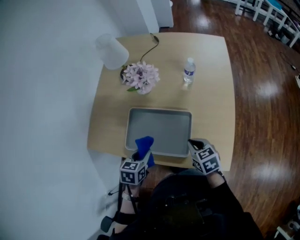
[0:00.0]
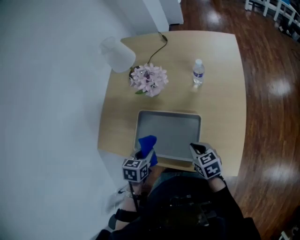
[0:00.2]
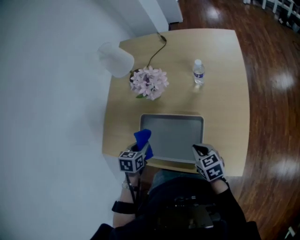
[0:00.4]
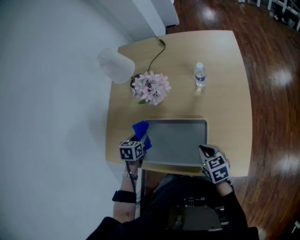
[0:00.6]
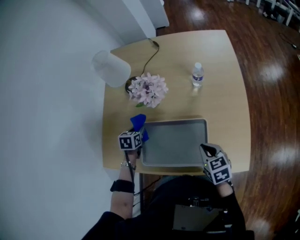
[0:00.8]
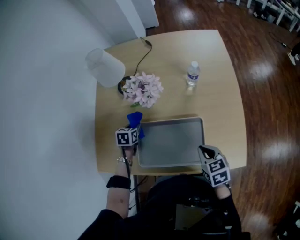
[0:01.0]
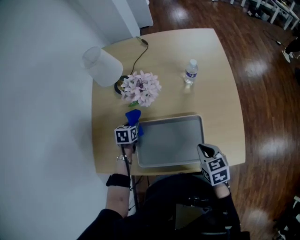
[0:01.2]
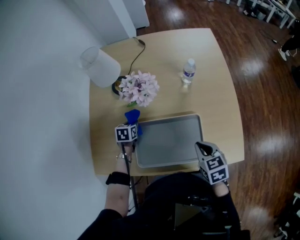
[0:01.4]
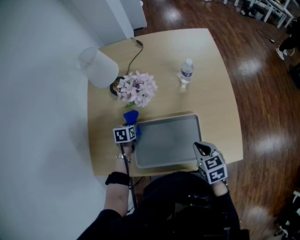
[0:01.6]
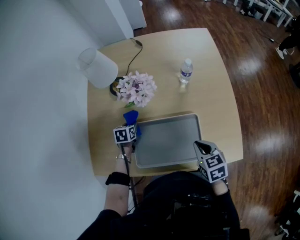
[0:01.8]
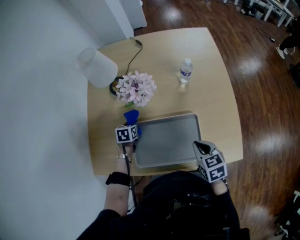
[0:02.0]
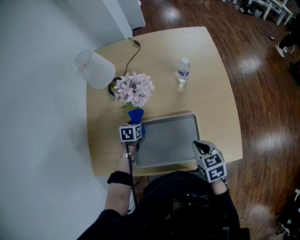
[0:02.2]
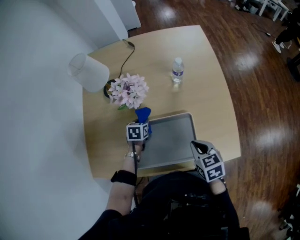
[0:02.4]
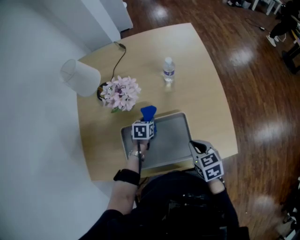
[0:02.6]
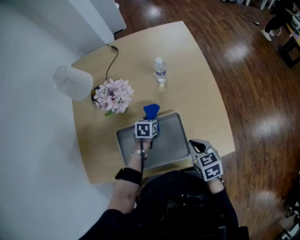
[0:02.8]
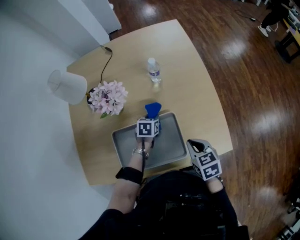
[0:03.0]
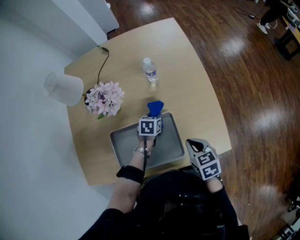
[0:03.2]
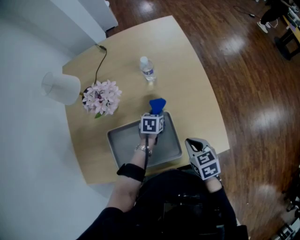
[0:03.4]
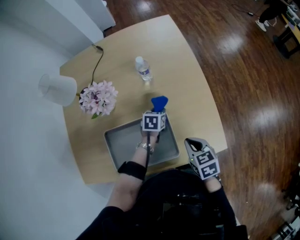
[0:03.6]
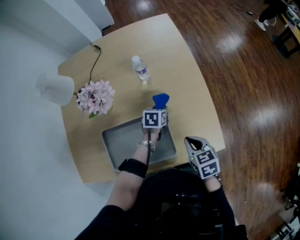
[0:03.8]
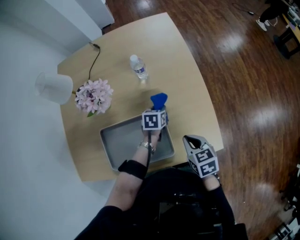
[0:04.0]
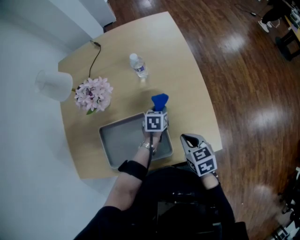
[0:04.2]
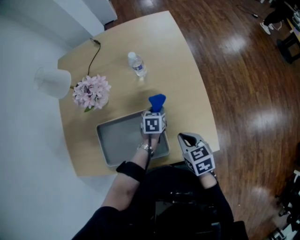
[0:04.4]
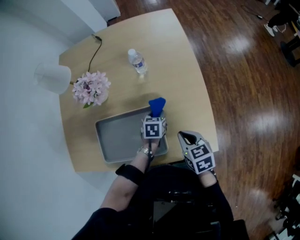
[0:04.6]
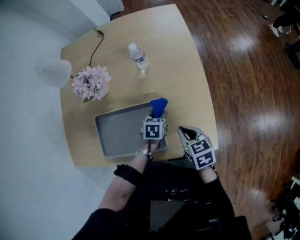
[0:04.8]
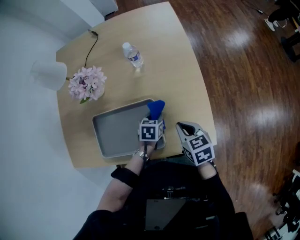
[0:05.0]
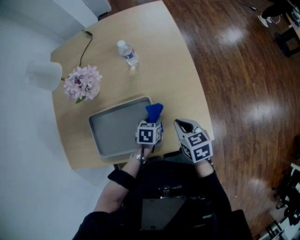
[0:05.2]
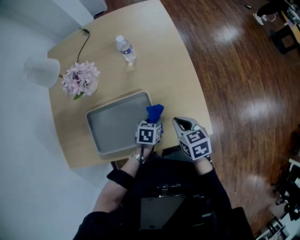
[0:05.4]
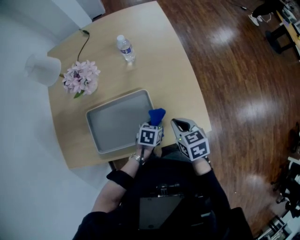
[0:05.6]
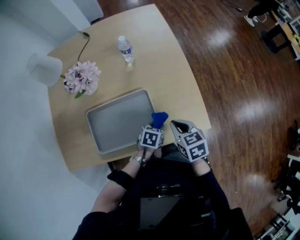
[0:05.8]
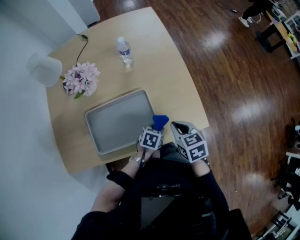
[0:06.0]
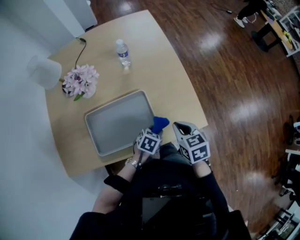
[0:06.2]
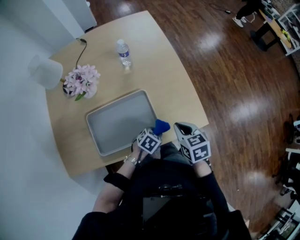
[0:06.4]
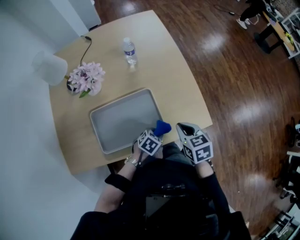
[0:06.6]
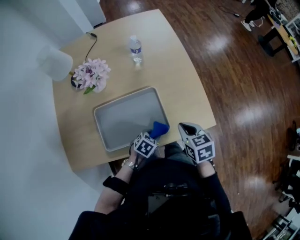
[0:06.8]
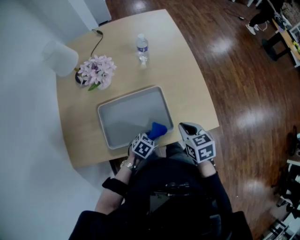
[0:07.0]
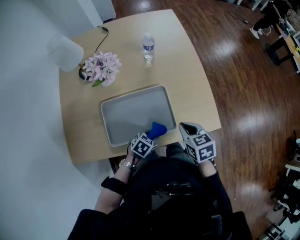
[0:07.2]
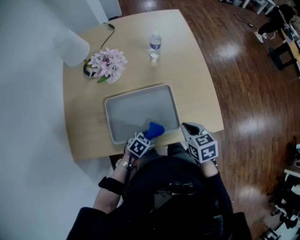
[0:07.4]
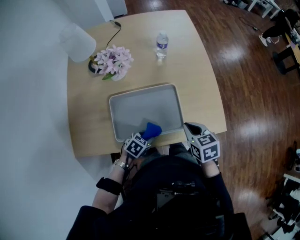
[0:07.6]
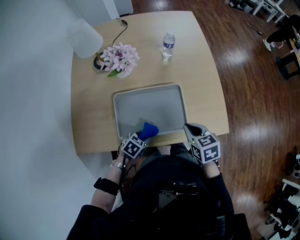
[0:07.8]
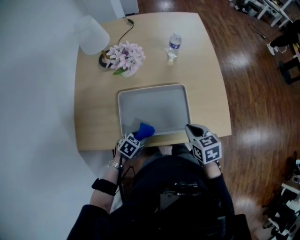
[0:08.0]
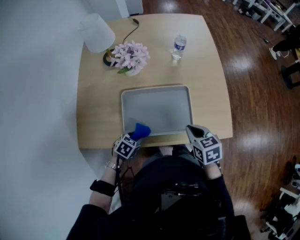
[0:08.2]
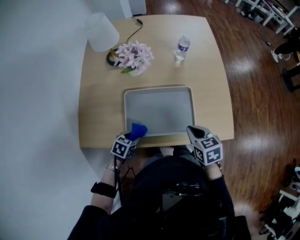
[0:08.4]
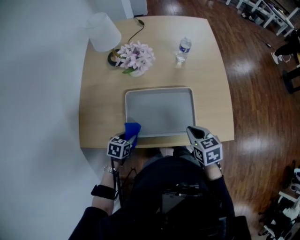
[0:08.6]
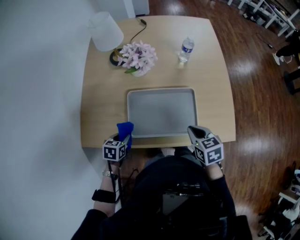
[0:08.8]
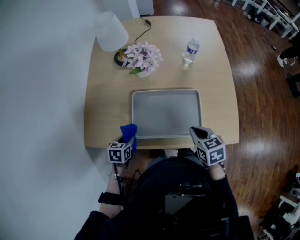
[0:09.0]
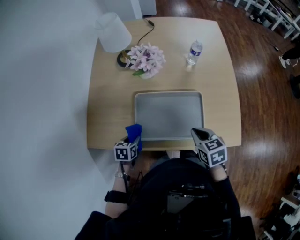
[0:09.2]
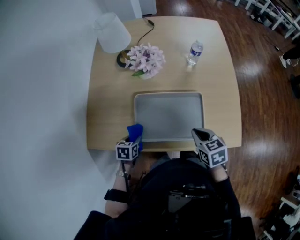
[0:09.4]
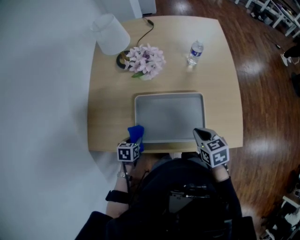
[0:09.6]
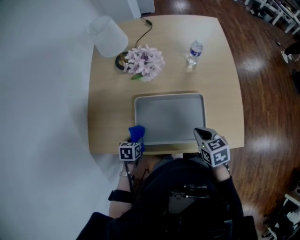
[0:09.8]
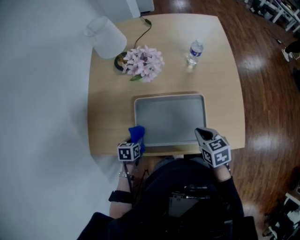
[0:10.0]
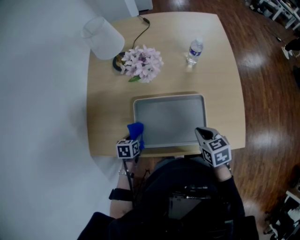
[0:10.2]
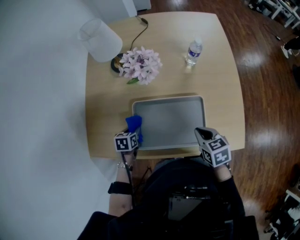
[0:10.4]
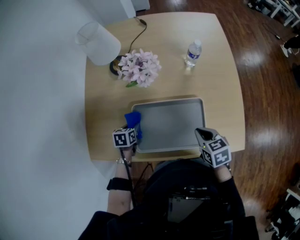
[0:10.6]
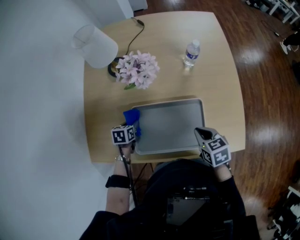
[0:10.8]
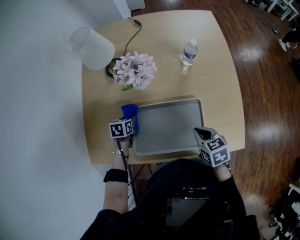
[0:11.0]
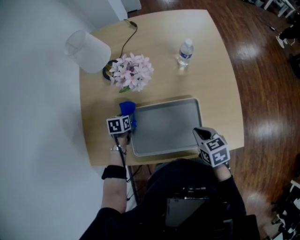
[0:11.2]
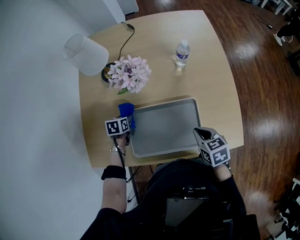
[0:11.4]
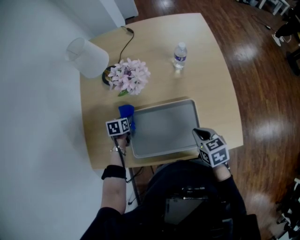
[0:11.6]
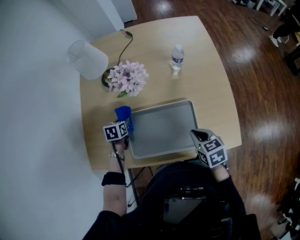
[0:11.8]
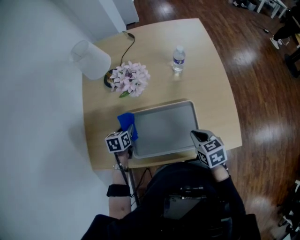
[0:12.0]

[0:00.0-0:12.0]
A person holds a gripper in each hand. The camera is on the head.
0:00.0 to 0:01.6: The right gripper changes place by about 5 cm; the left gripper heads forward and downward, covering roughly 30 cm.
0:01.6 to 0:03.0: The left gripper shifts approximately 25 cm to the right. Meanwhile the right gripper moves to the right, roughly 10 cm.
0:03.0 to 0:04.4: The right gripper travels to the right by roughly 5 cm. The left gripper moves to the right, some 10 cm.
0:04.4 to 0:06.0: The right gripper shifts by approximately 5 cm. Meanwhile the left gripper shifts by approximately 25 cm, and changes its angle by approximately 30 degrees.
0:06.0 to 0:07.6: The left gripper moves to the left and backward, approximately 20 cm. The right gripper travels to the left by about 5 cm.
0:07.6 to 0:09.0: The left gripper shifts by roughly 20 cm, and rotates roughly 40 degrees. Meanwhile the right gripper ends up roughly 5 cm from where it was.
0:09.0 to 0:10.4: The left gripper is displaced forward by roughly 10 cm, while the right gripper shifts some 5 cm forward.
0:10.4 to 0:12.0: The left gripper is displaced forward and upward by roughly 10 cm.

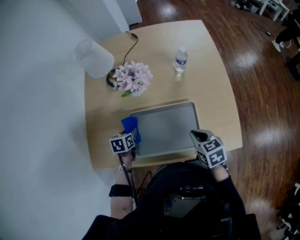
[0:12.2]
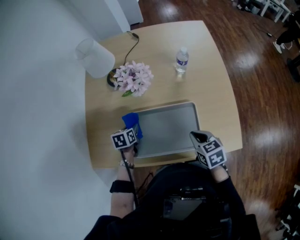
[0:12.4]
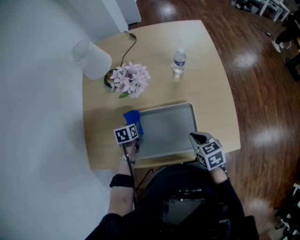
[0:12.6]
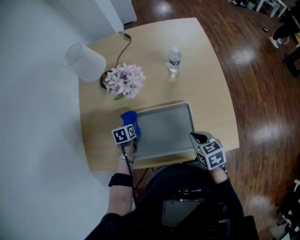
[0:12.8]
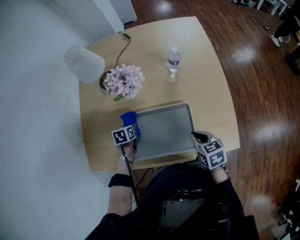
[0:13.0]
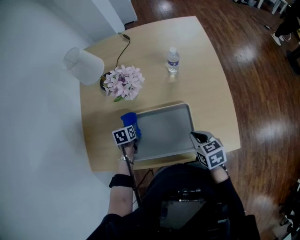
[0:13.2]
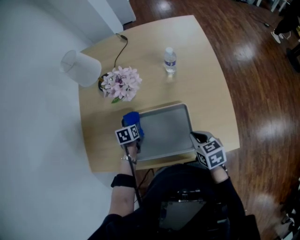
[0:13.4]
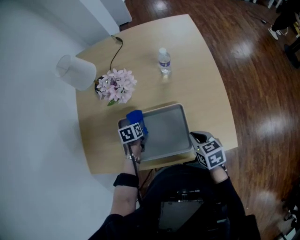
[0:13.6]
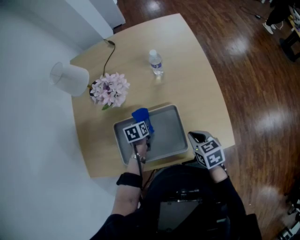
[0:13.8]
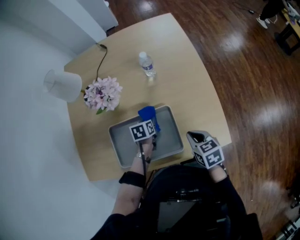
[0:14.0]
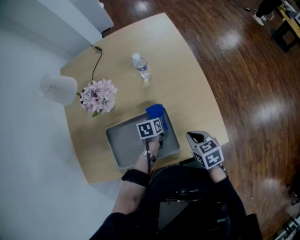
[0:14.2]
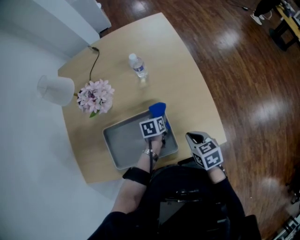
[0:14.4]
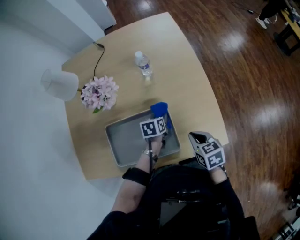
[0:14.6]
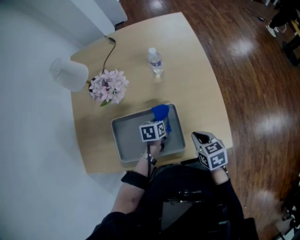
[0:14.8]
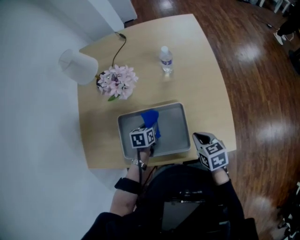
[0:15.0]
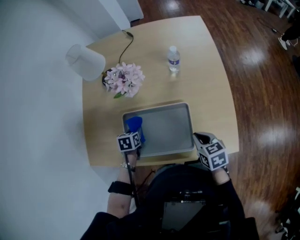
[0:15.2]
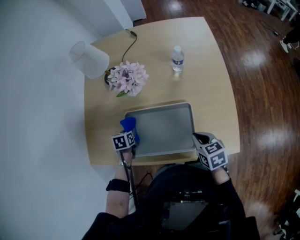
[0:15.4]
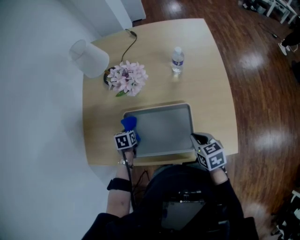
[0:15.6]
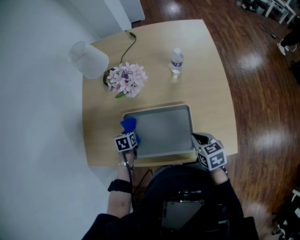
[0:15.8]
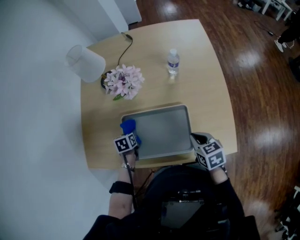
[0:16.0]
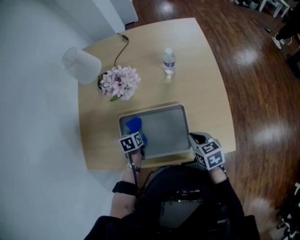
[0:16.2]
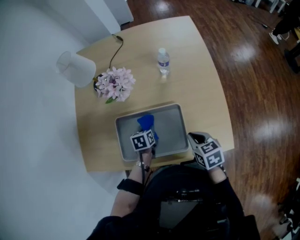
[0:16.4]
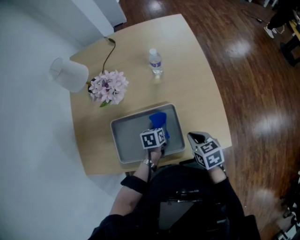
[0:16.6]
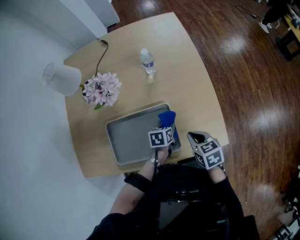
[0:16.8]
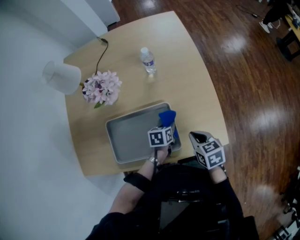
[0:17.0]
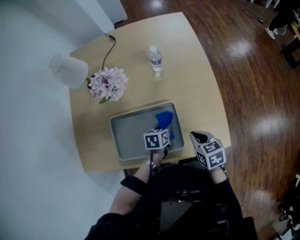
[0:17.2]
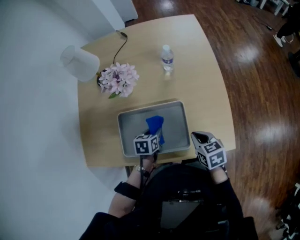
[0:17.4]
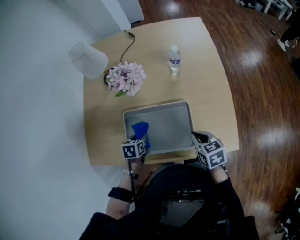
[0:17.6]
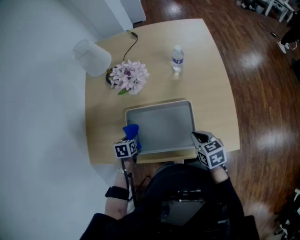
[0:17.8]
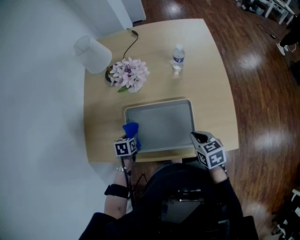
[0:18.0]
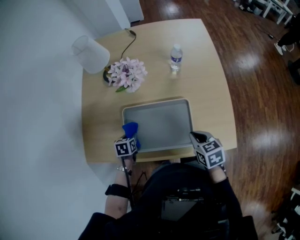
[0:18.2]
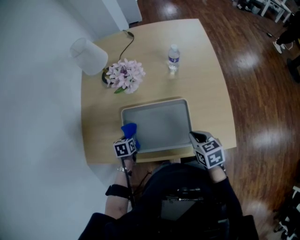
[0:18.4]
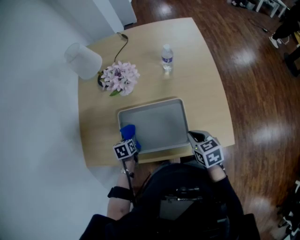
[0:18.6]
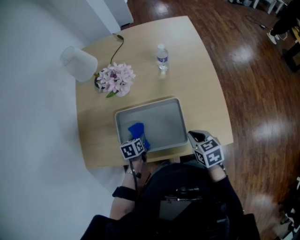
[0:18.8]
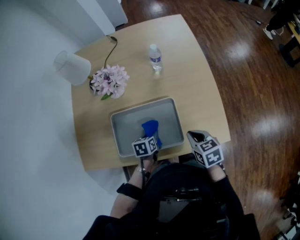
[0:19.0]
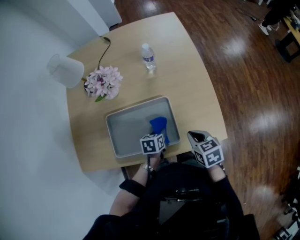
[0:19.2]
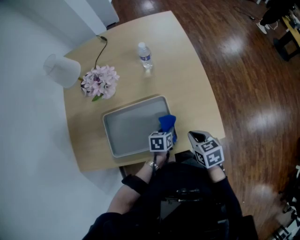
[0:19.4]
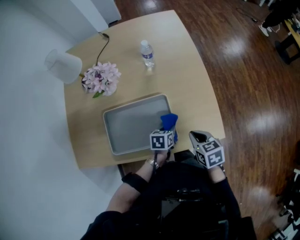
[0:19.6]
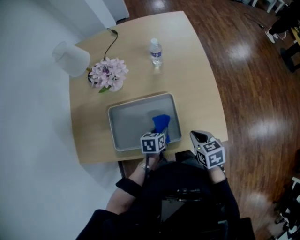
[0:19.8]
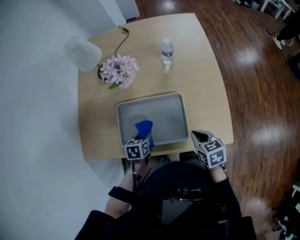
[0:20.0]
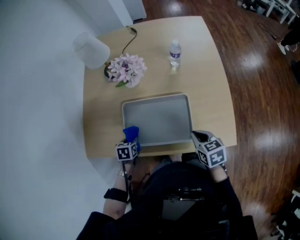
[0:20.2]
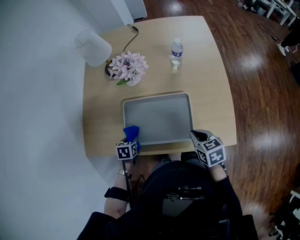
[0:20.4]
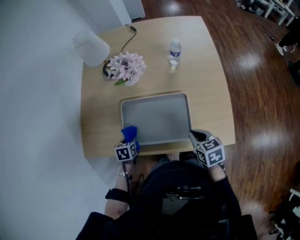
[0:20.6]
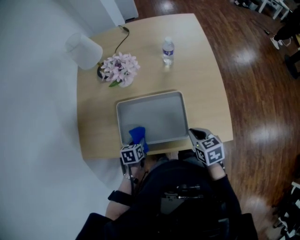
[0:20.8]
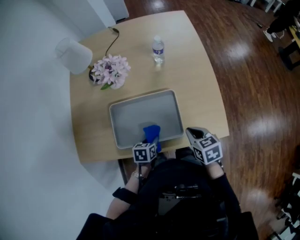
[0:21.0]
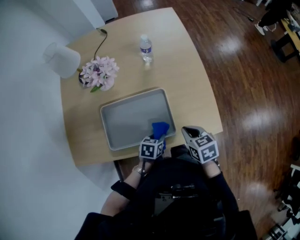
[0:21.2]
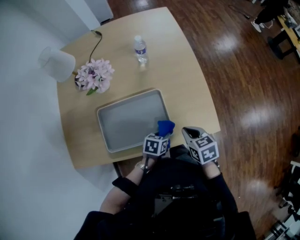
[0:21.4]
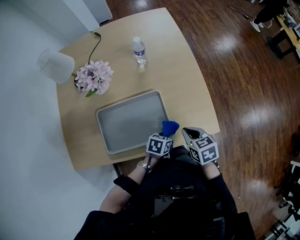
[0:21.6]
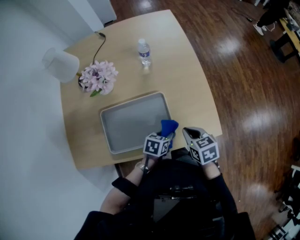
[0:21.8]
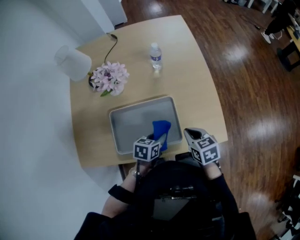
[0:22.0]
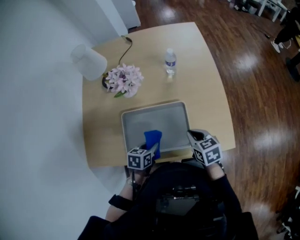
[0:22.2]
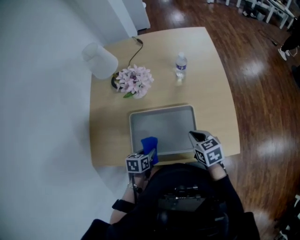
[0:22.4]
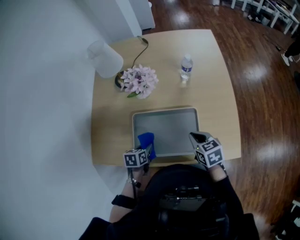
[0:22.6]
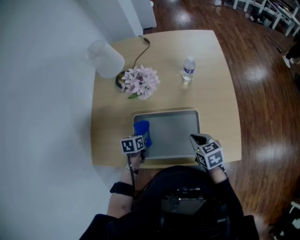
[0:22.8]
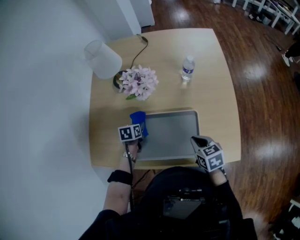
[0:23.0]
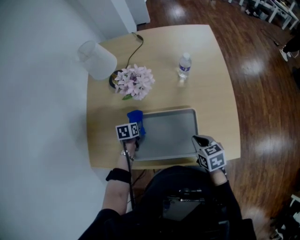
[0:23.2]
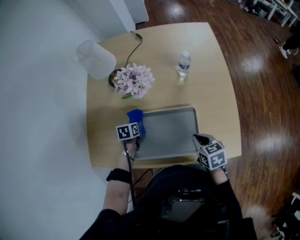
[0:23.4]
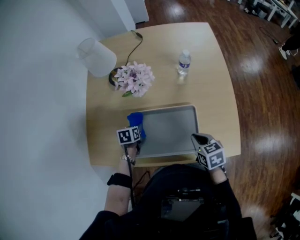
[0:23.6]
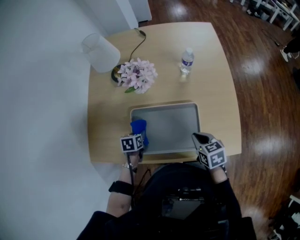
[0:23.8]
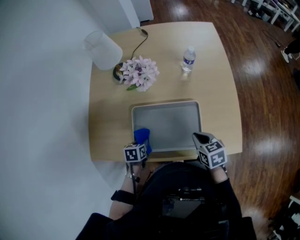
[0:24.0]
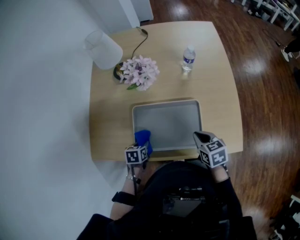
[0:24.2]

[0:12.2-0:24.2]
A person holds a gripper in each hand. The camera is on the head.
0:12.2 to 0:13.8: The right gripper shifts about 10 cm to the right; the left gripper travels to the right by about 15 cm.
0:13.8 to 0:15.2: The left gripper is displaced to the left and backward by about 10 cm.
0:15.2 to 0:16.6: The left gripper moves to the right, approximately 20 cm.
0:16.6 to 0:18.2: The right gripper moves to the left, some 5 cm, while the left gripper is displaced to the left by some 25 cm.
0:18.2 to 0:19.8: The left gripper goes about 25 cm to the right. The right gripper travels to the right by some 5 cm.
0:21.2 to 0:22.6: The left gripper changes place by about 20 cm, and changes its angle by some 20 degrees; the right gripper changes place by roughly 10 cm.
0:22.6 to 0:24.2: The left gripper goes forward and returns, approximately 15 cm each way.
